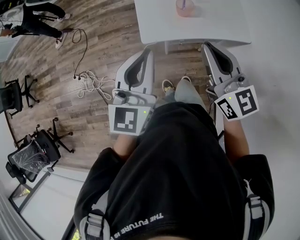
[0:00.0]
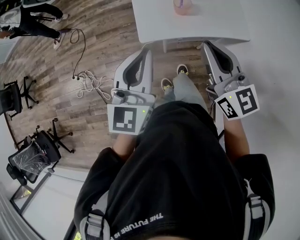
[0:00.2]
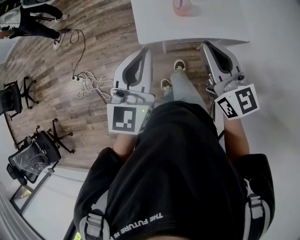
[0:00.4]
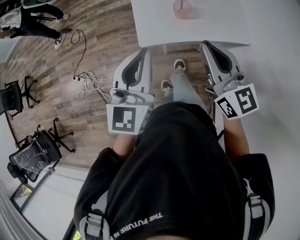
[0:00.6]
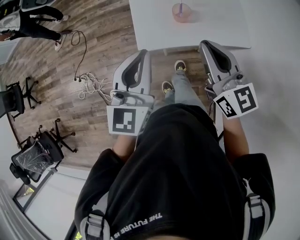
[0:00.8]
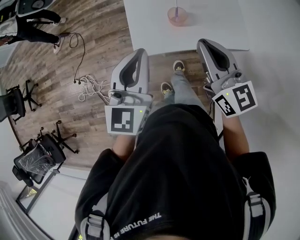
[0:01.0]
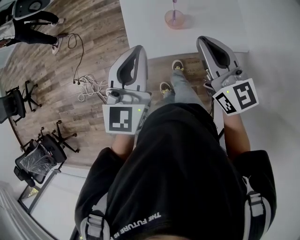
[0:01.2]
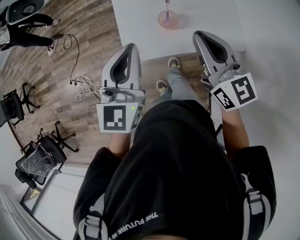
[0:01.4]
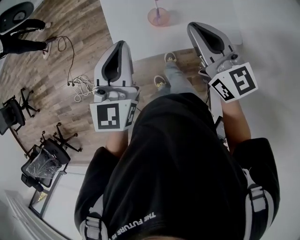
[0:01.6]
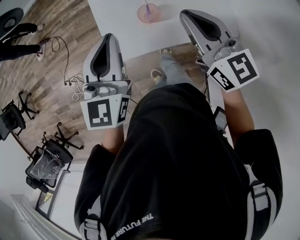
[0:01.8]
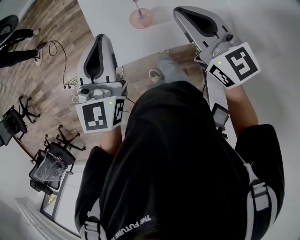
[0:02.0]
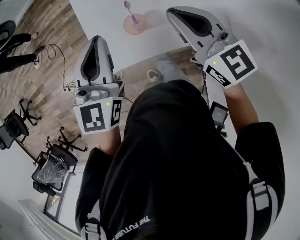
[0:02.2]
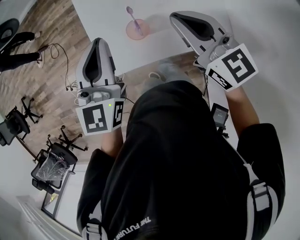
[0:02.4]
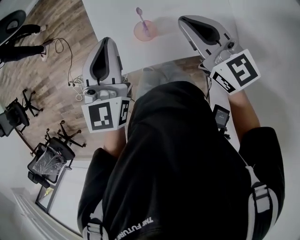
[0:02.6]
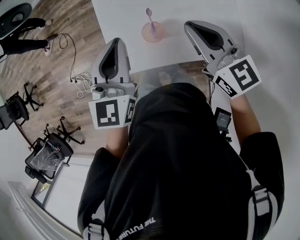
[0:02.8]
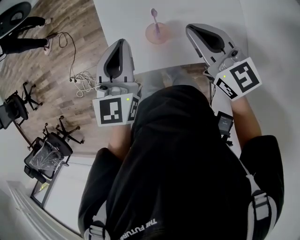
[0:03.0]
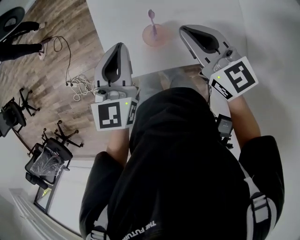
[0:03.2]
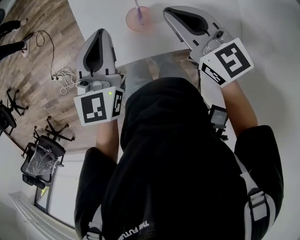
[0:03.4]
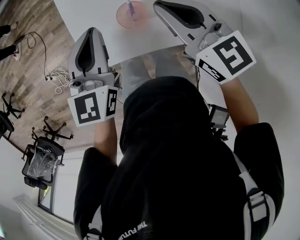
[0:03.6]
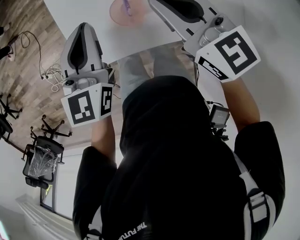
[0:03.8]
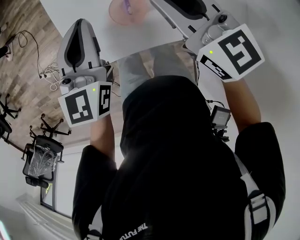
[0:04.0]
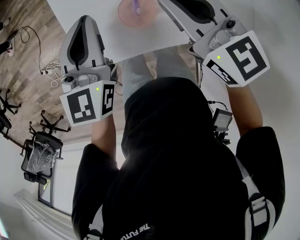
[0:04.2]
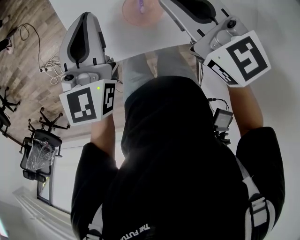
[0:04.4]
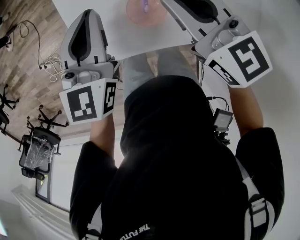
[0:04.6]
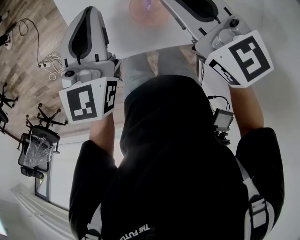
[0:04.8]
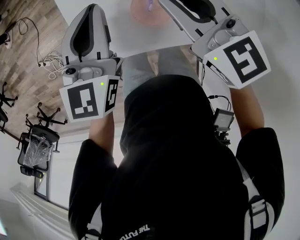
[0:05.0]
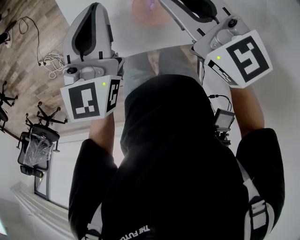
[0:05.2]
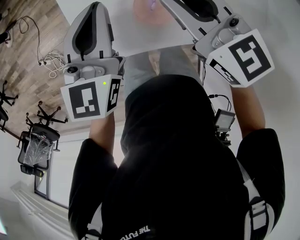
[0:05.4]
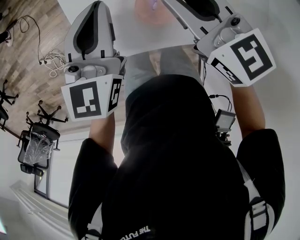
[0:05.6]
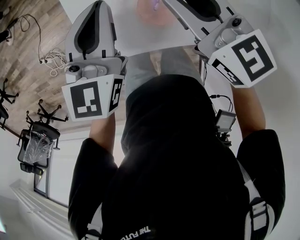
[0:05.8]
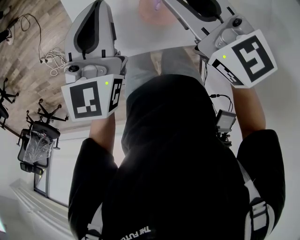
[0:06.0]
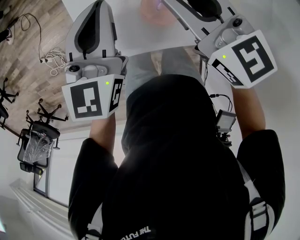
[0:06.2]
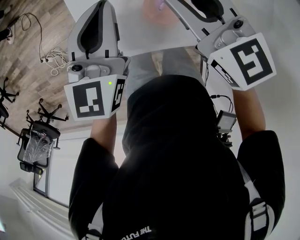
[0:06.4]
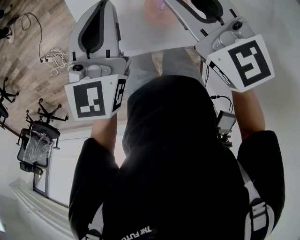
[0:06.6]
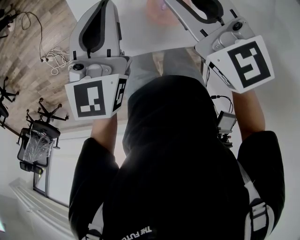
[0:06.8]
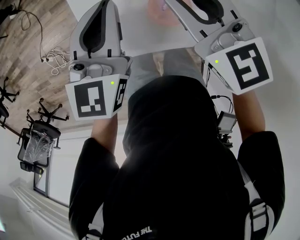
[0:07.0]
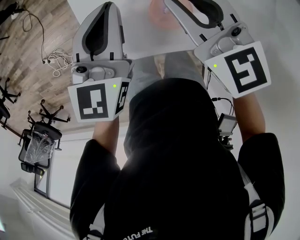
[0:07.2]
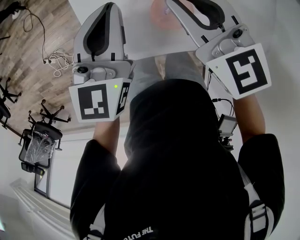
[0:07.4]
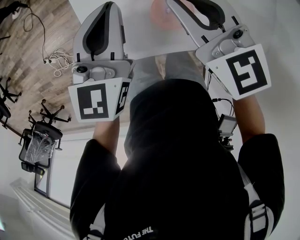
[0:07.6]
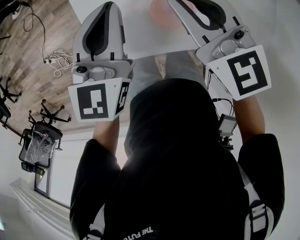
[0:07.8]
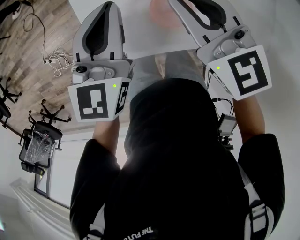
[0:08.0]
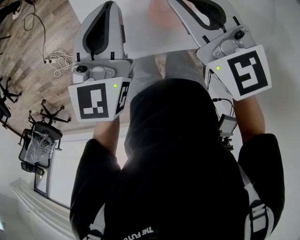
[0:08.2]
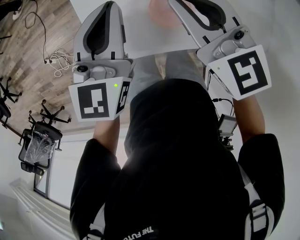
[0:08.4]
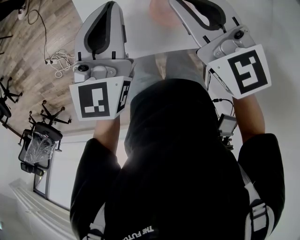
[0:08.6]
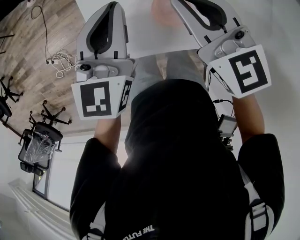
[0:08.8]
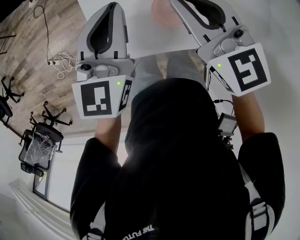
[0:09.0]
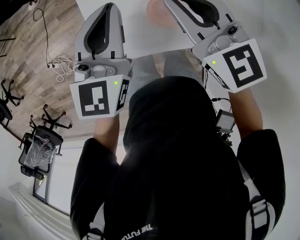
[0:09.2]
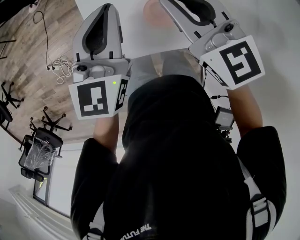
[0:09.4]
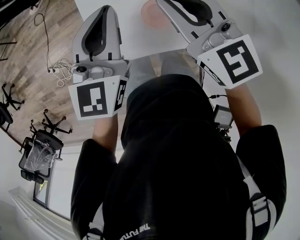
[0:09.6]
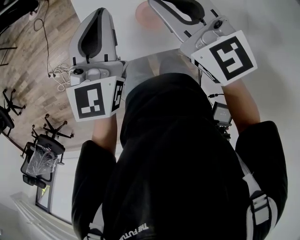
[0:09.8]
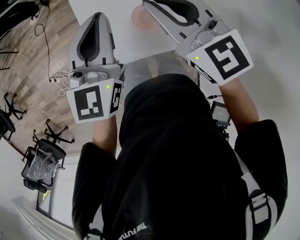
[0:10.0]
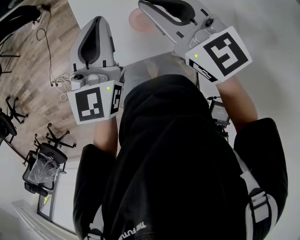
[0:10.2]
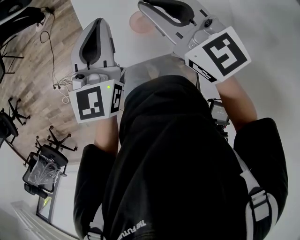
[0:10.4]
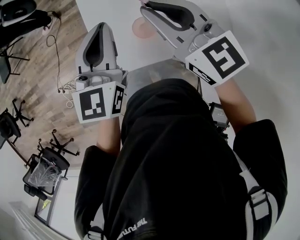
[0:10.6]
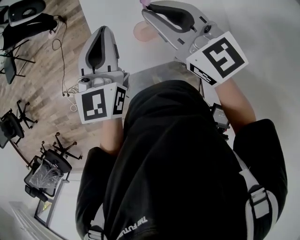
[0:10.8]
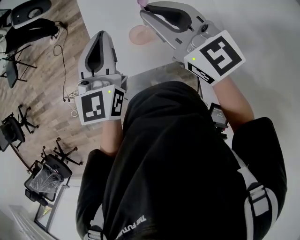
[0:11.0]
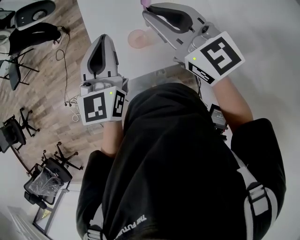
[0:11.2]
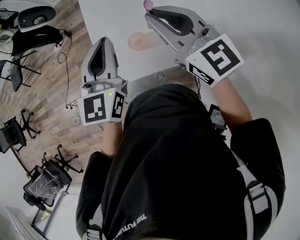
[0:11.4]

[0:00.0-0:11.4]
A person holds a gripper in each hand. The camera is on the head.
0:00.0 to 0:01.4: The left gripper goes approximately 15 cm forward; the right gripper goes about 20 cm forward and to the right.
0:01.4 to 0:02.8: Both grippers travel together forward, to the right and downward, roughly 15 cm.
0:02.8 to 0:04.2: Both grippers travel together downward, about 10 cm.
0:04.2 to 0:08.6: There are only small adjustments of the grippers.
0:08.6 to 0:10.0: Both grippers travel together upward, some 10 cm.
0:10.0 to 0:11.4: The left gripper goes approximately 15 cm upward and backward; the right gripper travels upward, backward and to the right by some 15 cm.

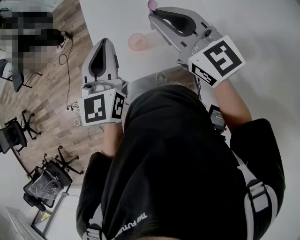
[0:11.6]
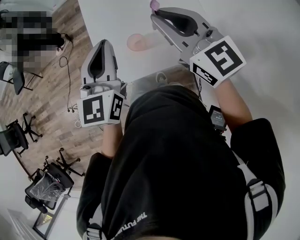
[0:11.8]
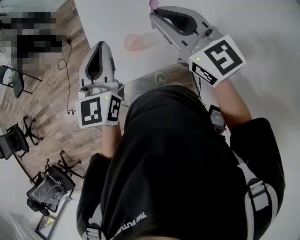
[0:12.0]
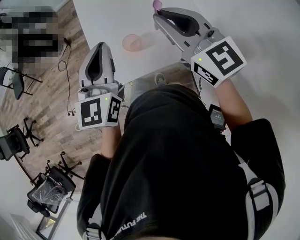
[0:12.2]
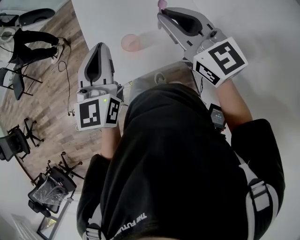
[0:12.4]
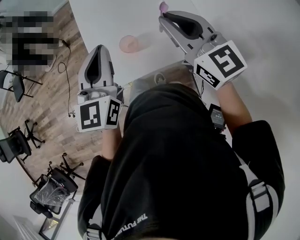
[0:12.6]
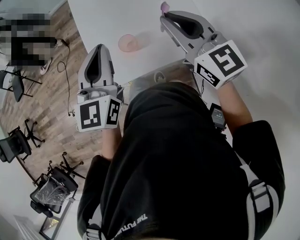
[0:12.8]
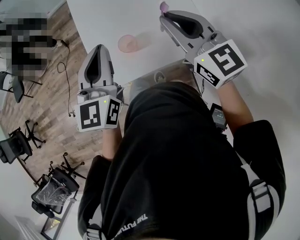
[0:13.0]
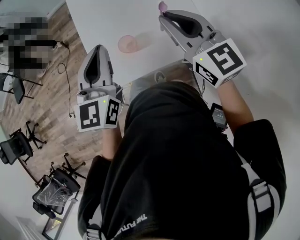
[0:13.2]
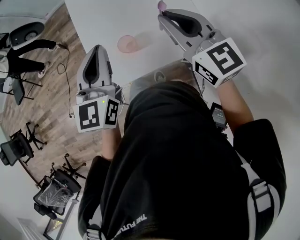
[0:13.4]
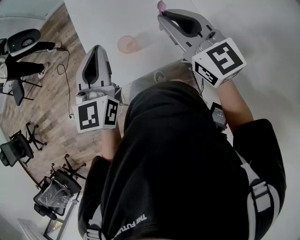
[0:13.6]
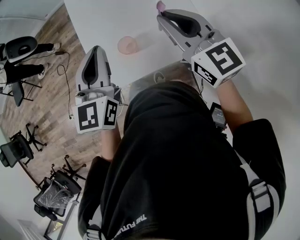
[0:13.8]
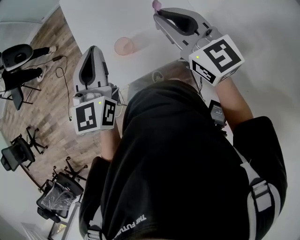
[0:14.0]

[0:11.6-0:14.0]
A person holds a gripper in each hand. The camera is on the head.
0:11.6 to 0:12.8: The right gripper travels to the right by some 5 cm.
0:12.8 to 0:14.0: There are only small adjustments of the grippers.

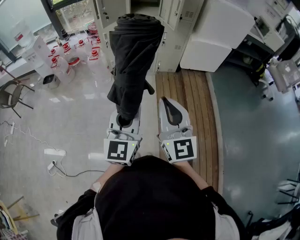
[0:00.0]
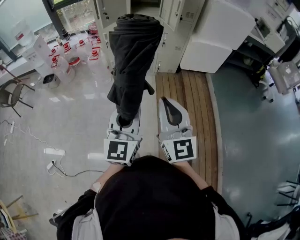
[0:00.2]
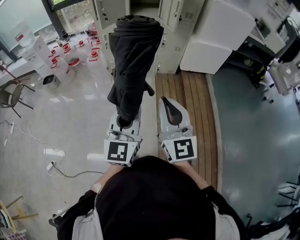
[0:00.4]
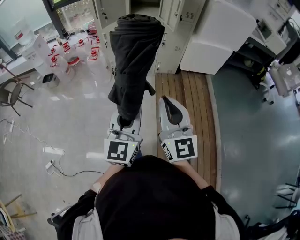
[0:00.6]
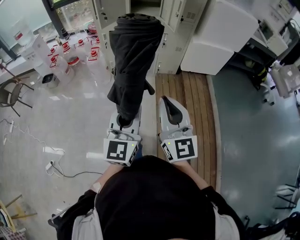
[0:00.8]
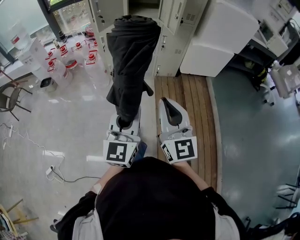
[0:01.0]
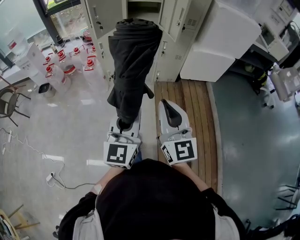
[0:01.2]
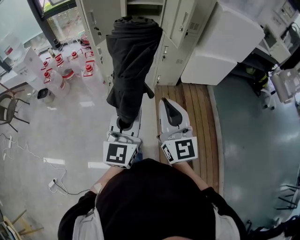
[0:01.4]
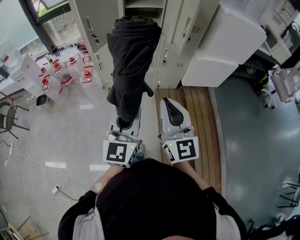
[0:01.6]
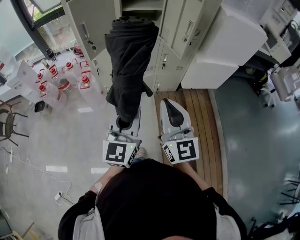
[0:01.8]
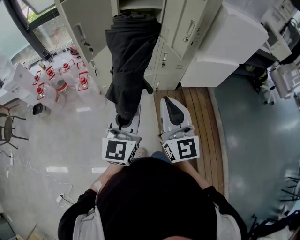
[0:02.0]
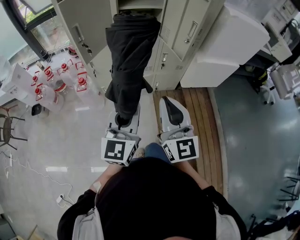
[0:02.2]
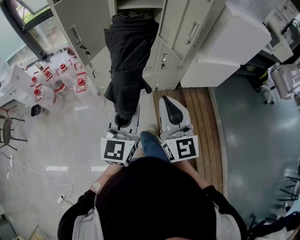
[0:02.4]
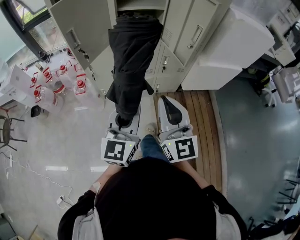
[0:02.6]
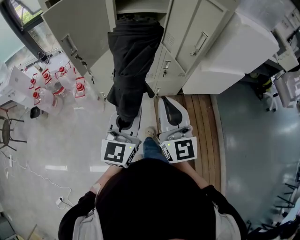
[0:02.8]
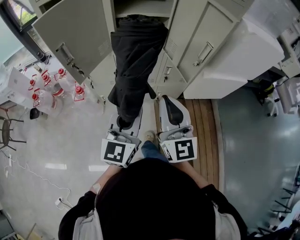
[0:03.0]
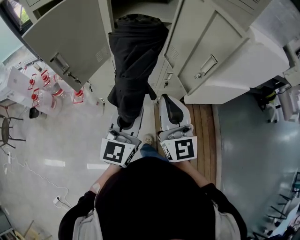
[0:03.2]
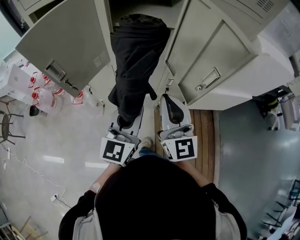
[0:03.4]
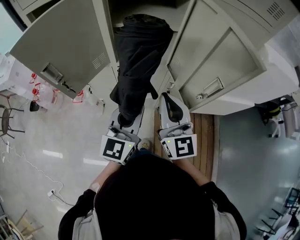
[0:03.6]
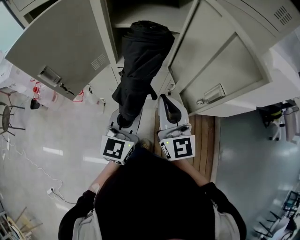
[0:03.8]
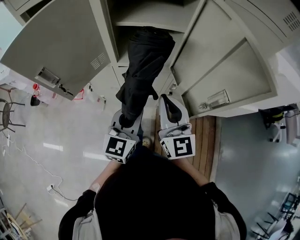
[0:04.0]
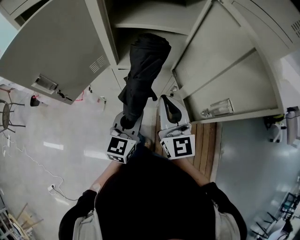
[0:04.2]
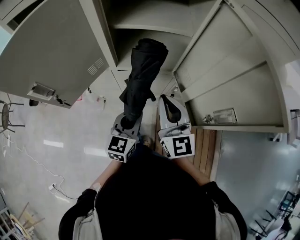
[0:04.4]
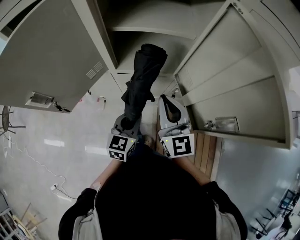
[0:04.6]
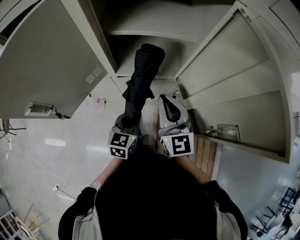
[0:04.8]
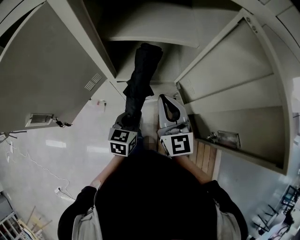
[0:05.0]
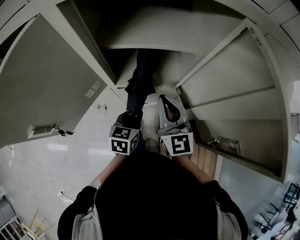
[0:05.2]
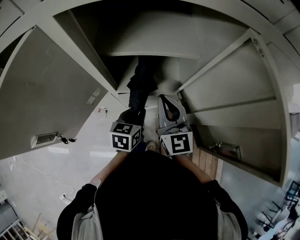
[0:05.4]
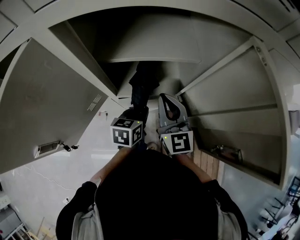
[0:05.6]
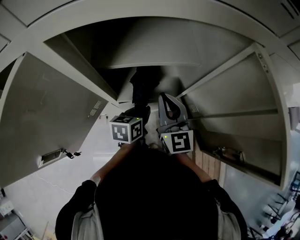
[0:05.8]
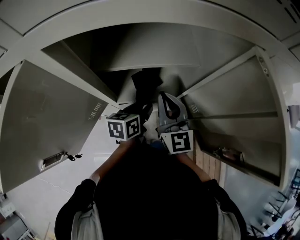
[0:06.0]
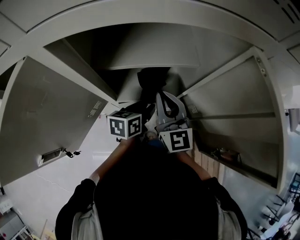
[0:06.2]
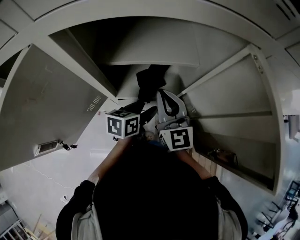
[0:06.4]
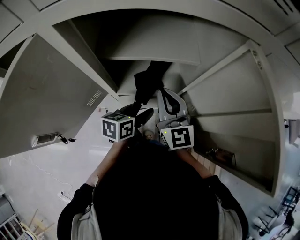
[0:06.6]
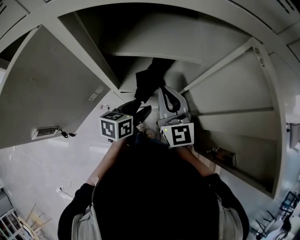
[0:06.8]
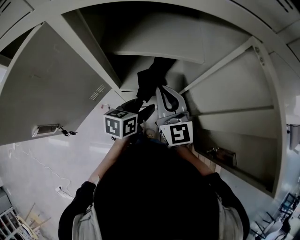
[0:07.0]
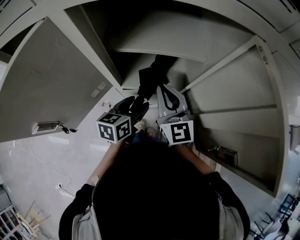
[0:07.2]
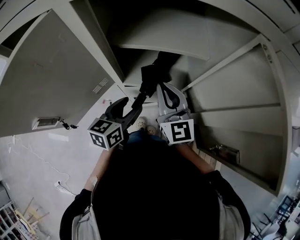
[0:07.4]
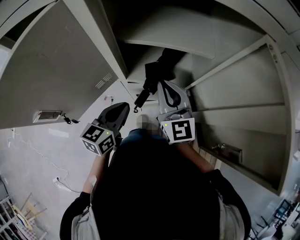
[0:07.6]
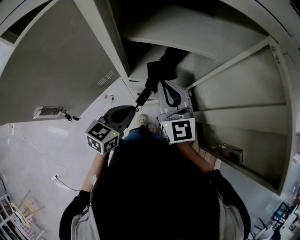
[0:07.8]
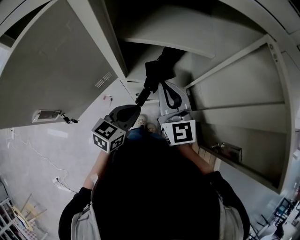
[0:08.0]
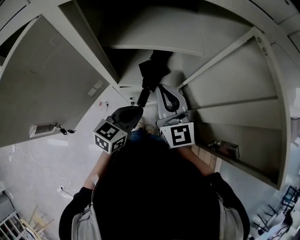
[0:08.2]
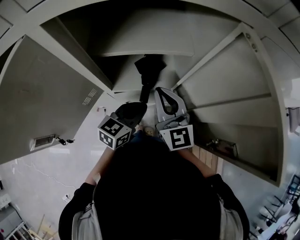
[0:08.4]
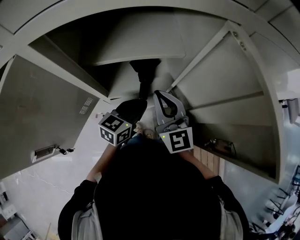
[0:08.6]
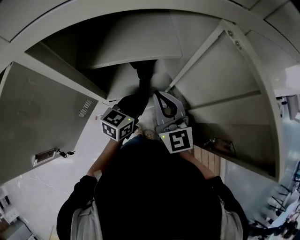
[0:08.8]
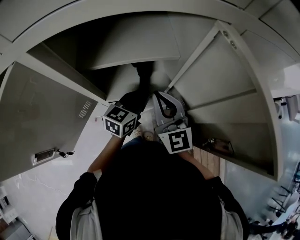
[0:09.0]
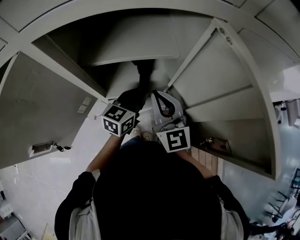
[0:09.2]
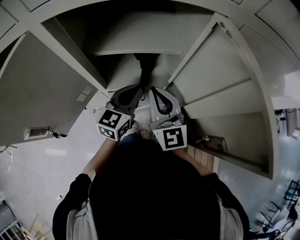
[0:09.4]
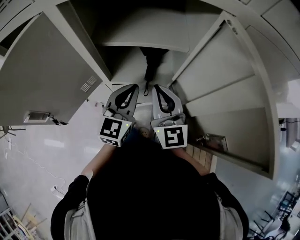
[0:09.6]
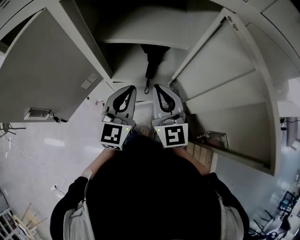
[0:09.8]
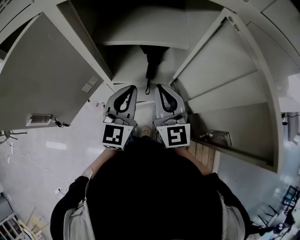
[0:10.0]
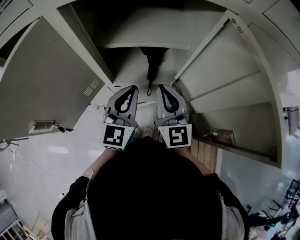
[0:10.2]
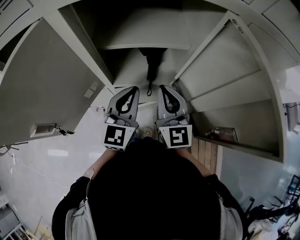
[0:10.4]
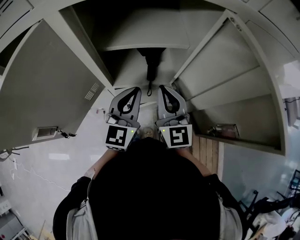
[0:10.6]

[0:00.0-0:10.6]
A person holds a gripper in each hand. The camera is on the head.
0:00.0 to 0:01.6: The grippers both shift forward by approximately 25 cm.
0:01.6 to 0:03.0: The grippers both shift forward by roughly 25 cm.
0:03.0 to 0:04.6: The left gripper travels forward and downward by some 25 cm, and rotates approximately 20 degrees, while the right gripper goes some 25 cm forward.
0:04.6 to 0:06.0: Both grippers move forward, roughly 15 cm. The left gripper swivels roughly 30 degrees.
0:06.0 to 0:07.6: The left gripper is displaced backward, to the left and upward by roughly 15 cm, changes its angle by about 20 degrees, and closes.
0:07.6 to 0:09.0: The left gripper is displaced to the right and forward by approximately 20 cm, and swivels about 20 degrees. The right gripper moves to the right, some 5 cm.
0:09.0 to 0:10.6: The left gripper shifts about 15 cm upward, to the left and backward, and turns by some 30 degrees.
